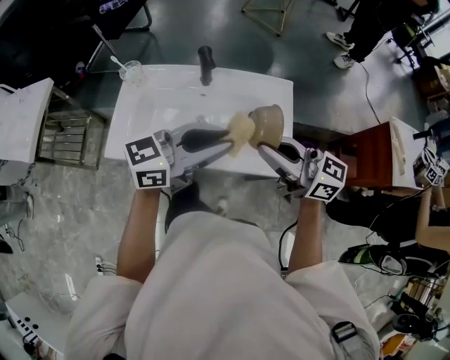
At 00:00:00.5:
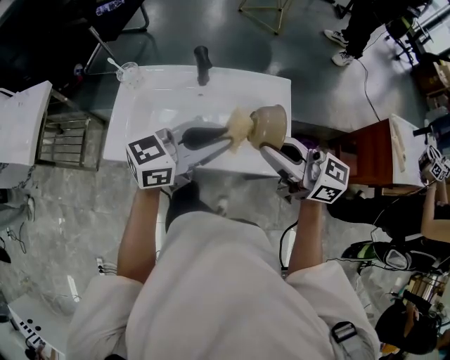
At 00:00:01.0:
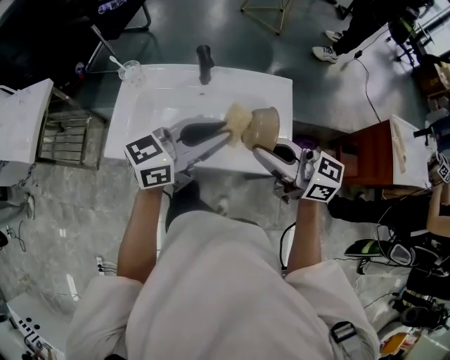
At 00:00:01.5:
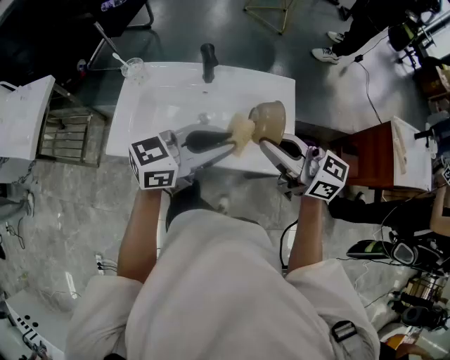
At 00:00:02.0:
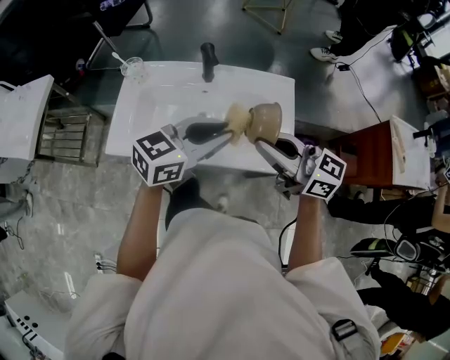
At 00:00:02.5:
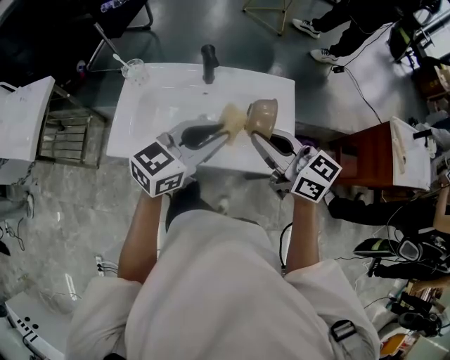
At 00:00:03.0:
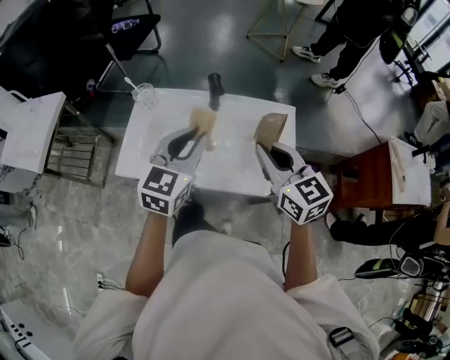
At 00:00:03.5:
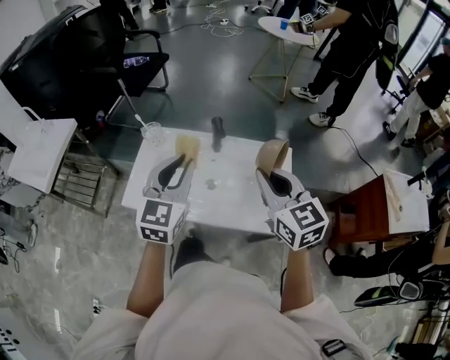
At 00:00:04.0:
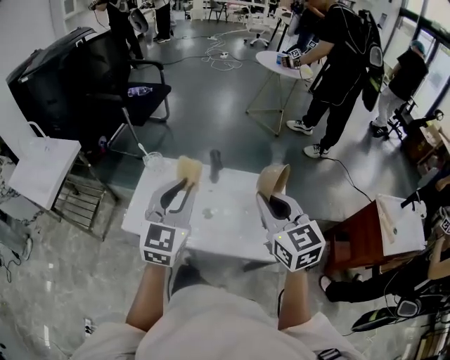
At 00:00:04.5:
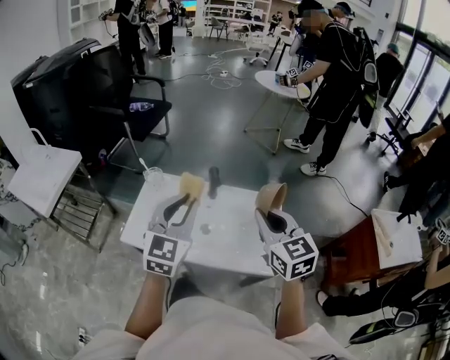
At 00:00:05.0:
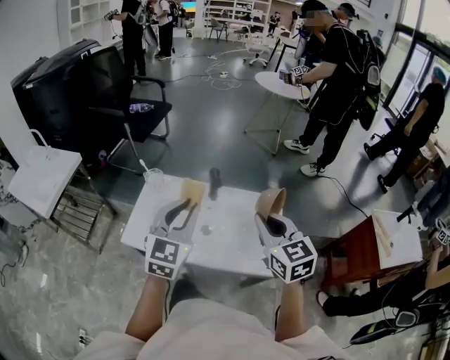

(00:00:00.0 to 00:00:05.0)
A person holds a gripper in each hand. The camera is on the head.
00:00:00.0 - 00:00:02.5: The left gripper rotates approximately 20 degrees.
00:00:02.5 - 00:00:05.0: The left gripper travels upward and to the left by some 15 cm, and swivels approximately 40 degrees. Meanwhile the right gripper moves upward, about 10 cm, and rotates about 30 degrees.

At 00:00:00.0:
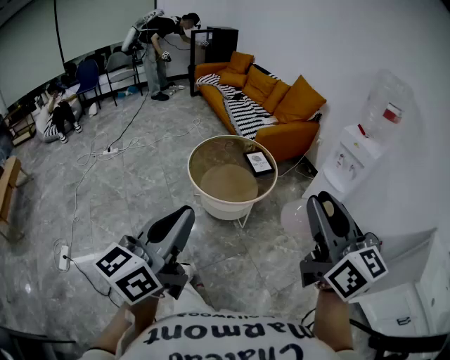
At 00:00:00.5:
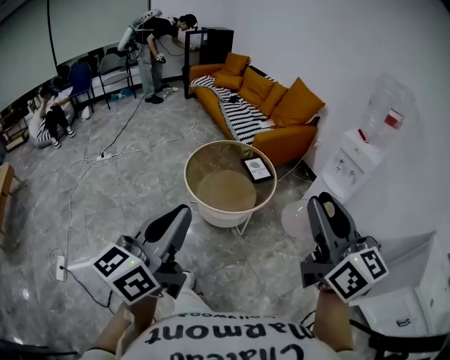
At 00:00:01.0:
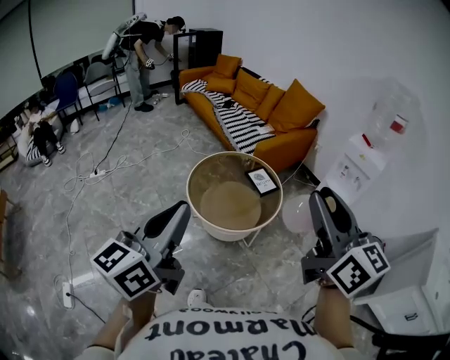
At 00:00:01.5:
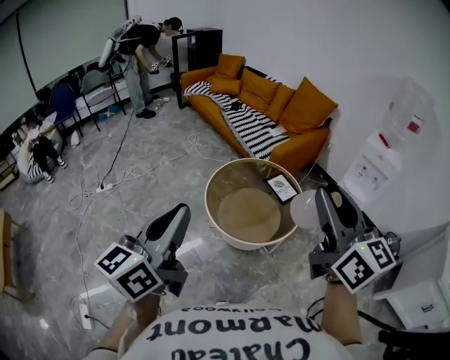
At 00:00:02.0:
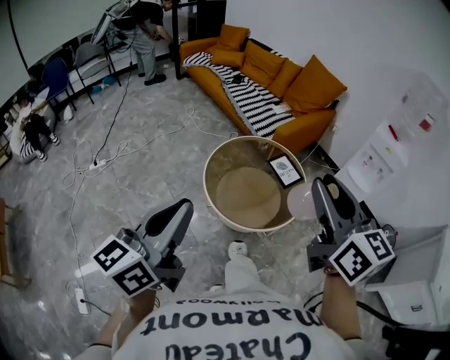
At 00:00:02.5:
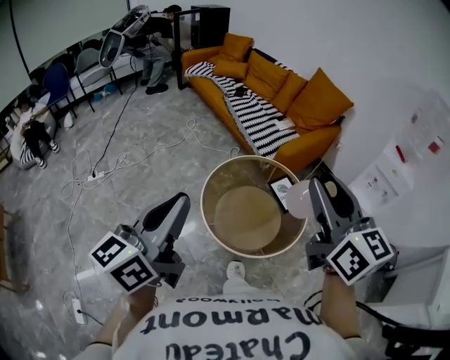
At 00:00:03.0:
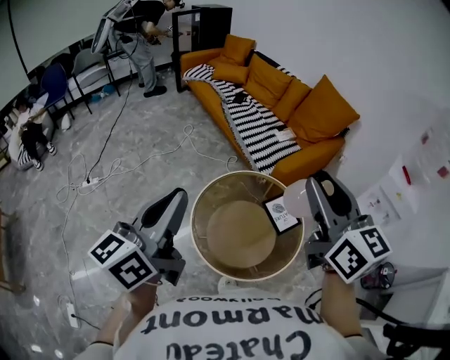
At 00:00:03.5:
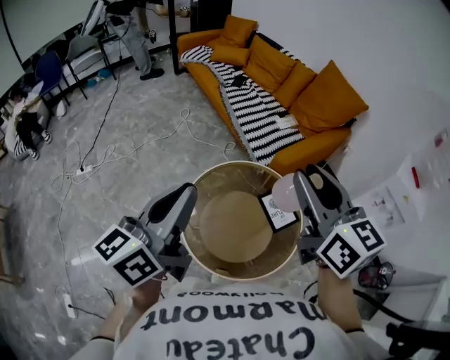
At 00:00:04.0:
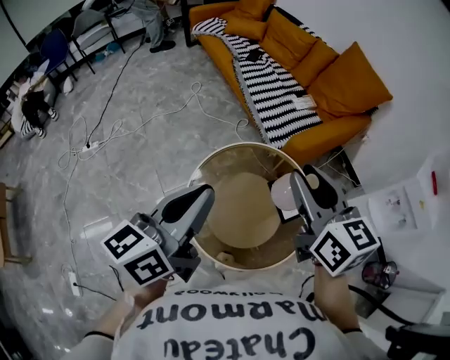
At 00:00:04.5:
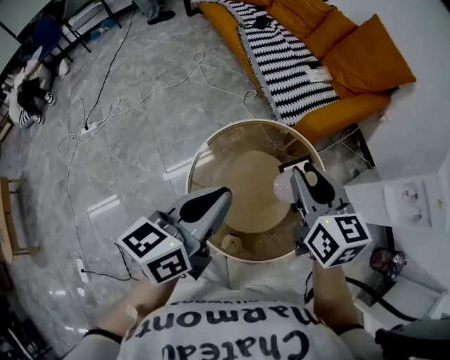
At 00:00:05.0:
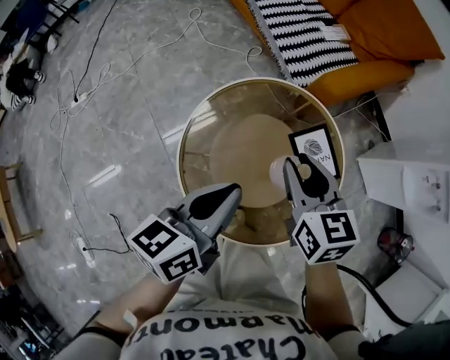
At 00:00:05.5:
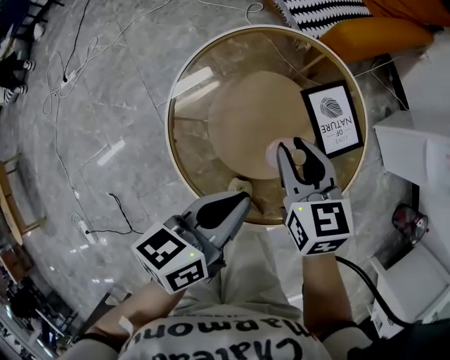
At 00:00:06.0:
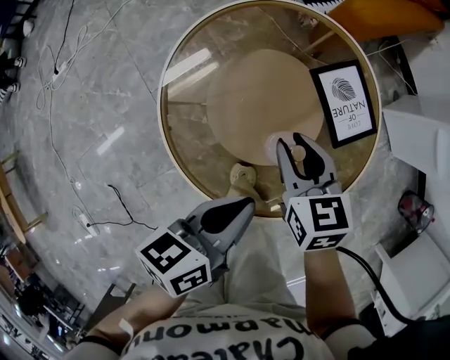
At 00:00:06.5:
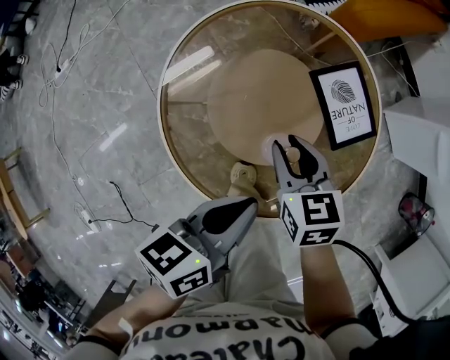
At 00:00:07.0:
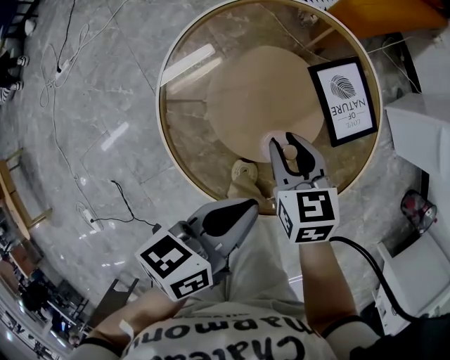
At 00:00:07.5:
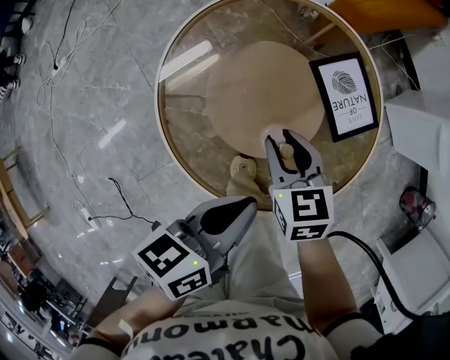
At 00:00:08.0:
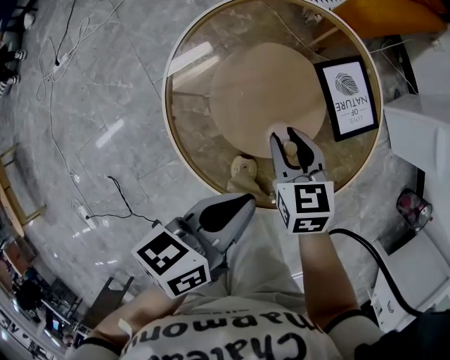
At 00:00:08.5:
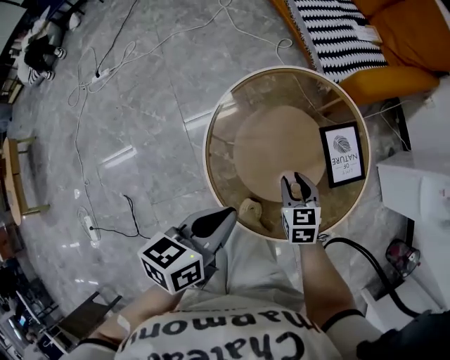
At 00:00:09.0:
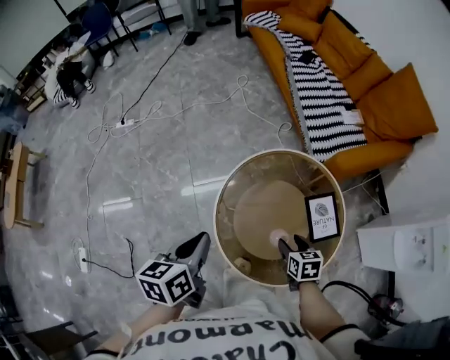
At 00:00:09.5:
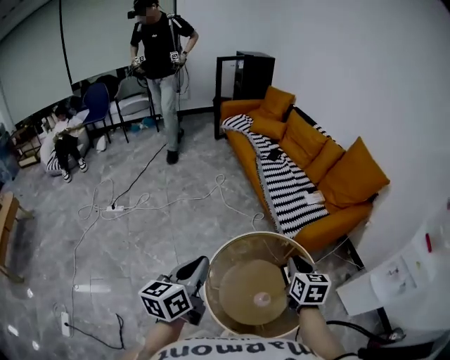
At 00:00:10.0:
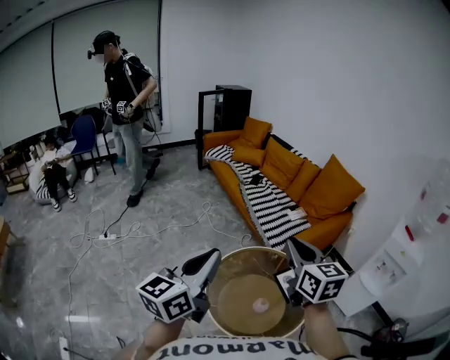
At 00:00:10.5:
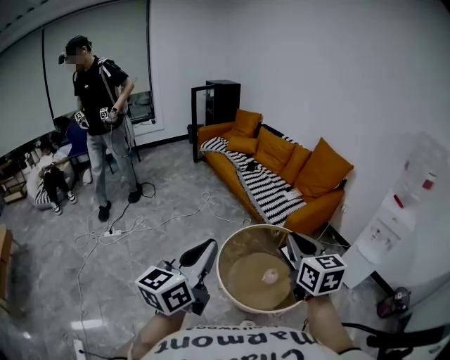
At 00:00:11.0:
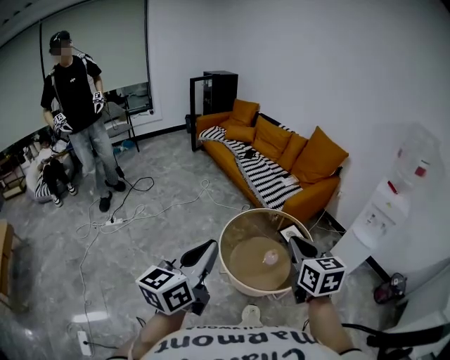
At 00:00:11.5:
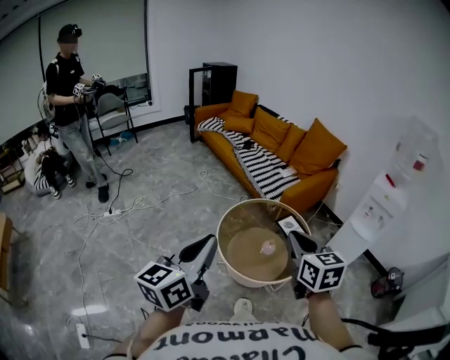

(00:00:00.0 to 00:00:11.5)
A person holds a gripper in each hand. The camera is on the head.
00:00:00.0 - 00:00:02.0: The grippers both shift forward and to the left by approximately 40 cm.
00:00:02.0 - 00:00:04.0: The grippers both shift forward by roughly 35 cm.
00:00:04.0 - 00:00:06.0: The grippers both shift downward by about 40 cm. The right gripper changes its angle by roughly 30 degrees. Meanwhile the left gripper turns by about 40 degrees.
00:00:06.0 - 00:00:07.5: The grippers make only small movements.
00:00:07.5 - 00:00:09.5: Both grippers move upward, some 30 cm. The left gripper turns by about 40 degrees; the right gripper opens, then closes once more.
00:00:09.5 - 00:00:11.5: Both grippers travel together backward and upward, roughly 35 cm. The left gripper swivels about 20 degrees.

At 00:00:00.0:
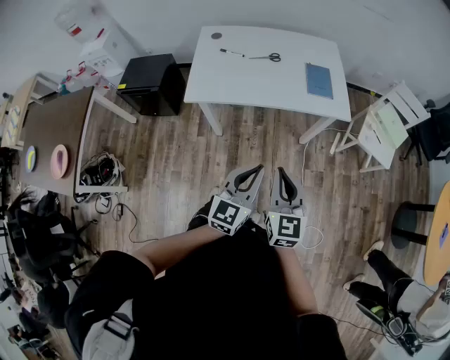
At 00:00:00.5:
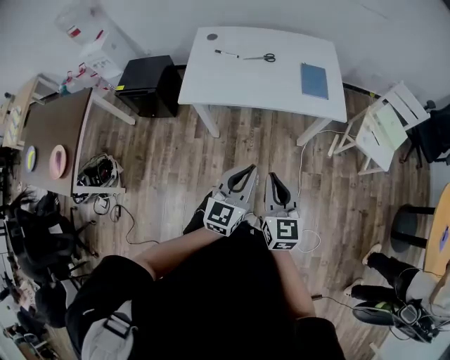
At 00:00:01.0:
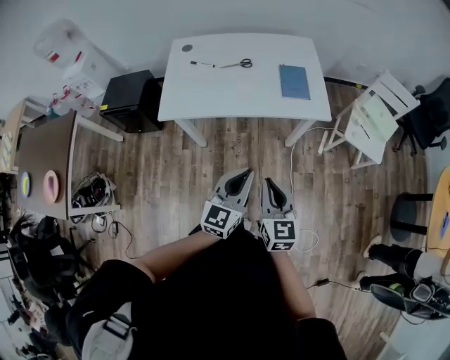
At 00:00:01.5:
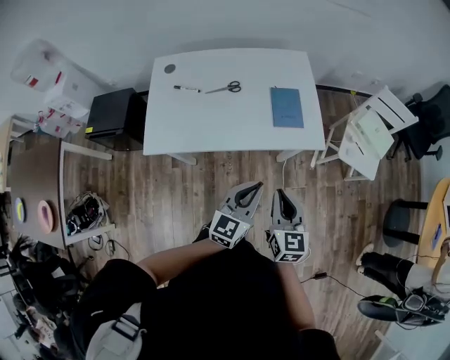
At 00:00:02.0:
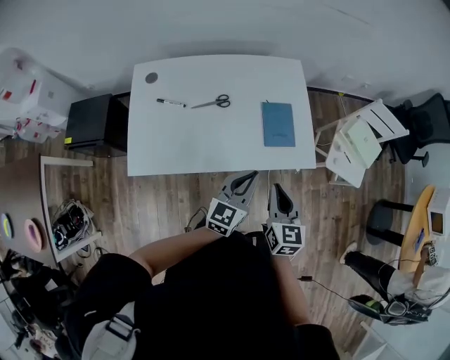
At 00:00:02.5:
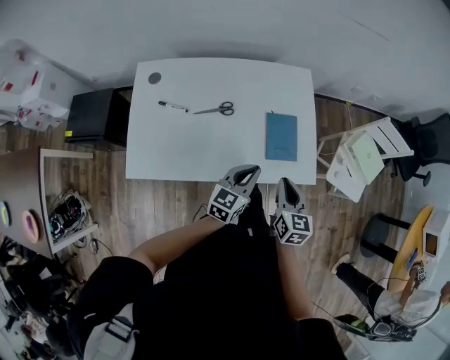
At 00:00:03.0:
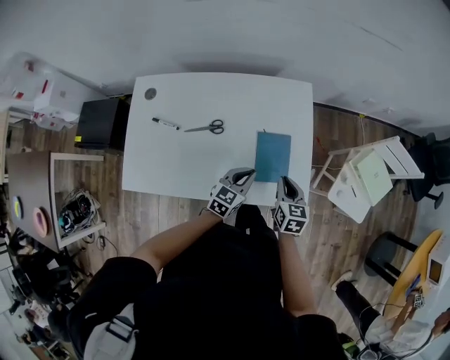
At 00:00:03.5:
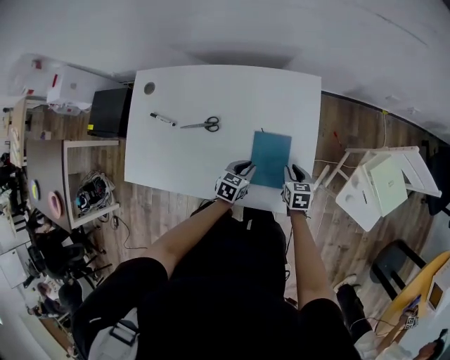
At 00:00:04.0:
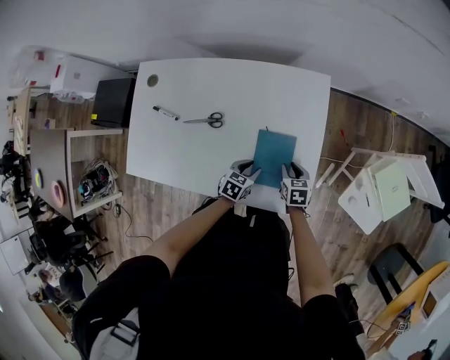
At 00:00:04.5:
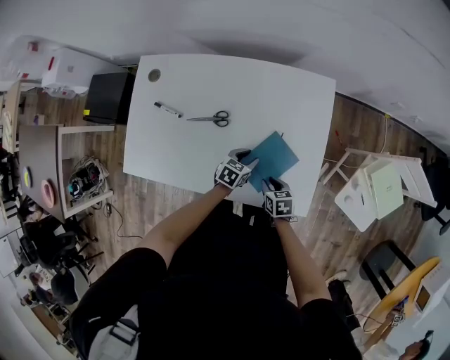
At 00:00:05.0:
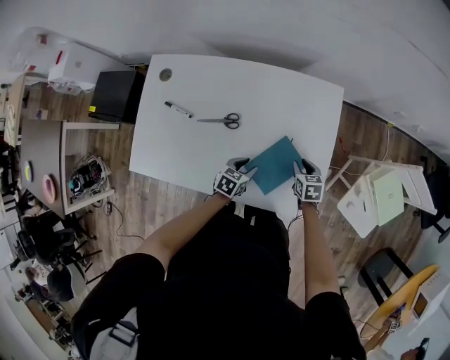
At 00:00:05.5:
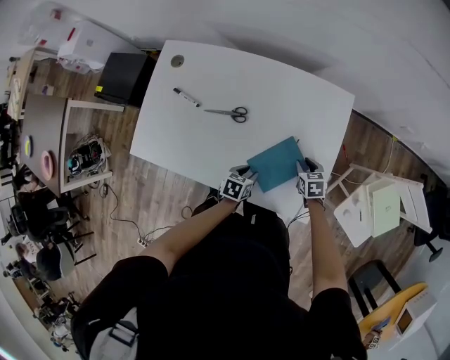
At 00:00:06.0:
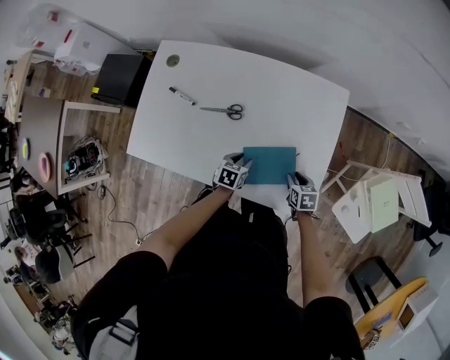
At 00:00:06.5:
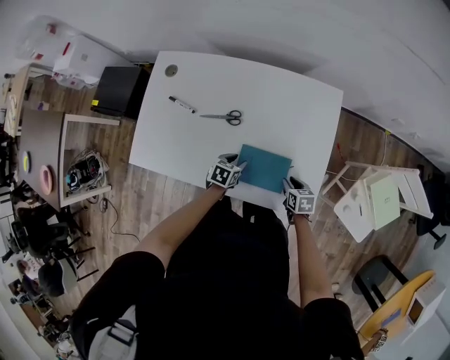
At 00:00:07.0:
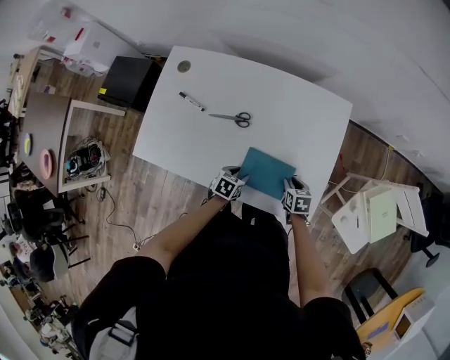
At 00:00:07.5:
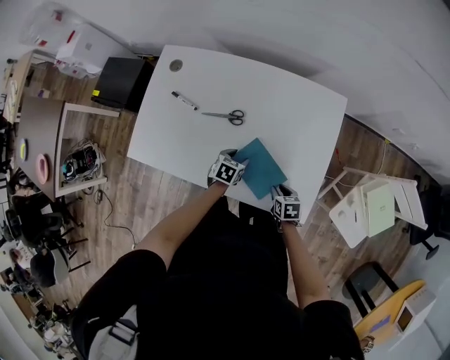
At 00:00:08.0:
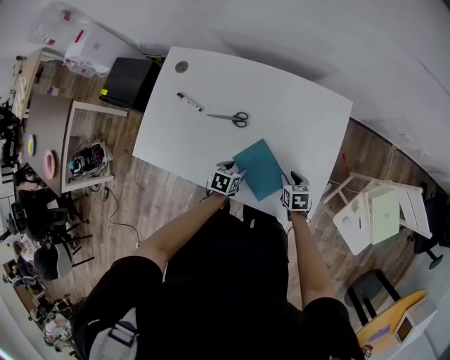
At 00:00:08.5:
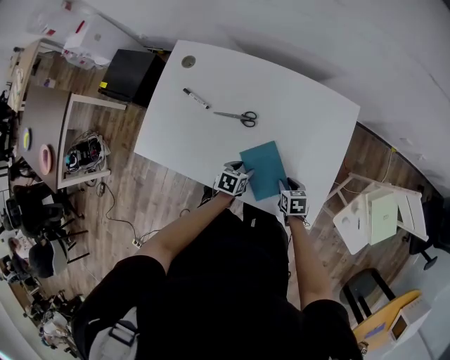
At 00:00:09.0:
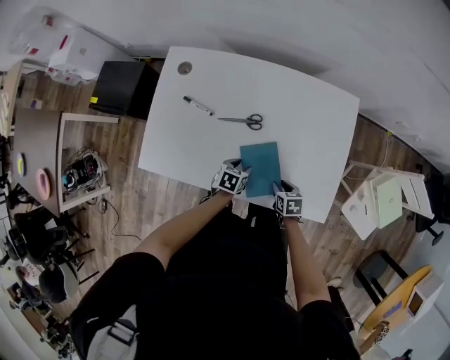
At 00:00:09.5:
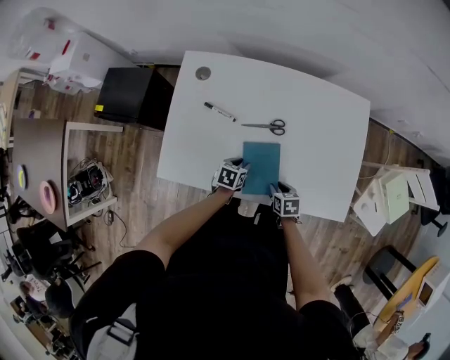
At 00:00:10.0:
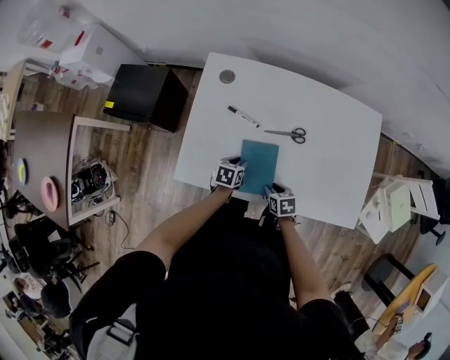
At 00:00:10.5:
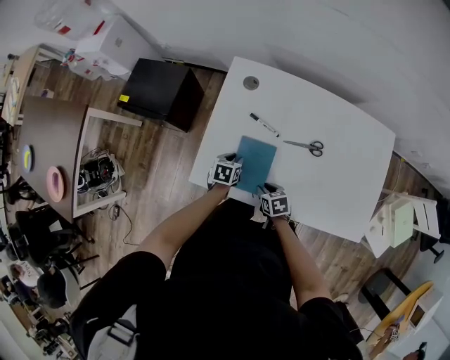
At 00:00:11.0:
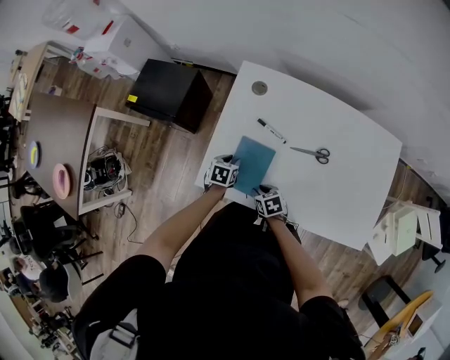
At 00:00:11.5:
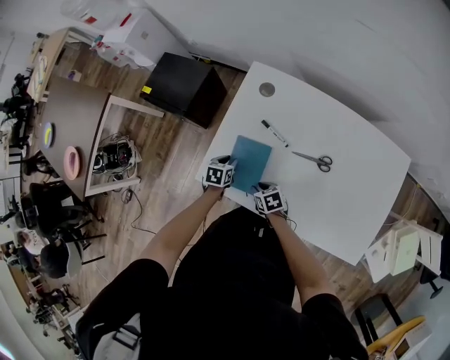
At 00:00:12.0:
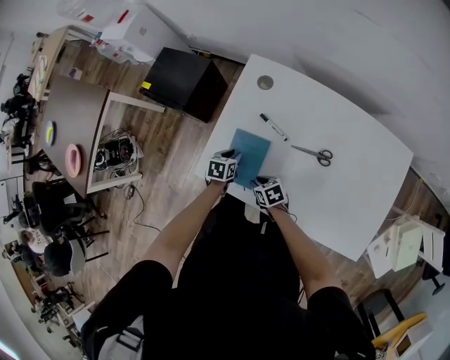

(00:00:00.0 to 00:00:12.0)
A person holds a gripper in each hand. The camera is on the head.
00:00:00.0 - 00:00:02.0: Both grippers move forward, some 35 cm.
00:00:02.0 - 00:00:04.0: The left gripper is displaced downward and forward by roughly 35 cm, points its fingers about 40 degrees further downward, and opens. The right gripper is displaced forward and downward by some 40 cm, and turns by some 40 degrees.
00:00:04.0 - 00:00:06.0: The right gripper goes forward and backward, some 10 cm each way, reversing 2 times; the left gripper is displaced to the left by some 10 cm.
00:00:06.0 - 00:00:08.0: The left gripper moves forward and backward over some 5 cm, changing direction 2 times.
00:00:08.0 - 00:00:10.0: The two grippers go roughly 30 cm to the left. The left gripper closes.
00:00:10.0 - 00:00:12.0: The right gripper moves about 15 cm, and turns by roughly 30 degrees, while the left gripper ends up approximately 15 cm from where it was.
